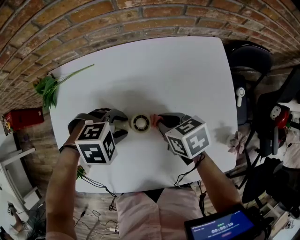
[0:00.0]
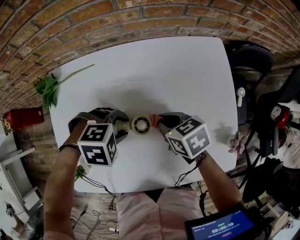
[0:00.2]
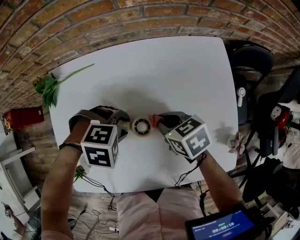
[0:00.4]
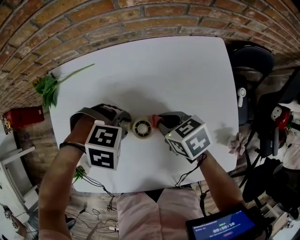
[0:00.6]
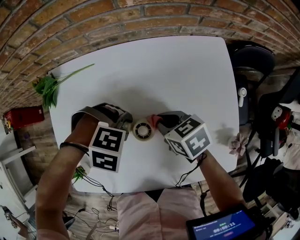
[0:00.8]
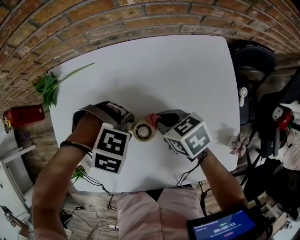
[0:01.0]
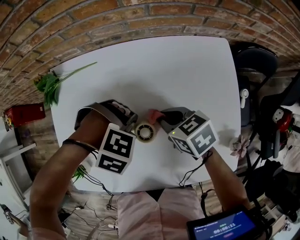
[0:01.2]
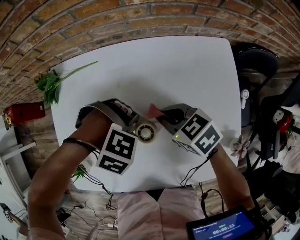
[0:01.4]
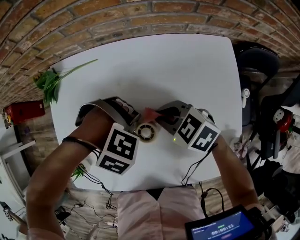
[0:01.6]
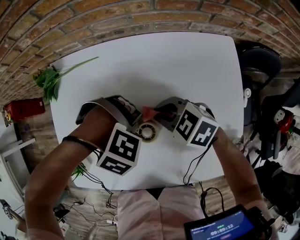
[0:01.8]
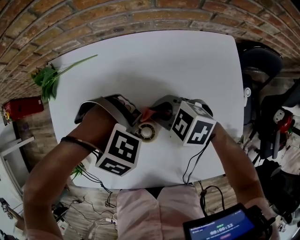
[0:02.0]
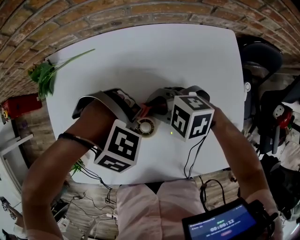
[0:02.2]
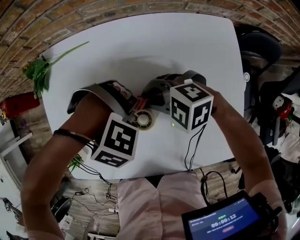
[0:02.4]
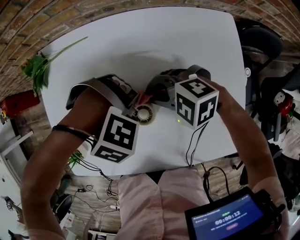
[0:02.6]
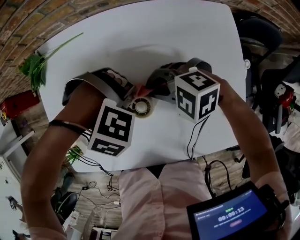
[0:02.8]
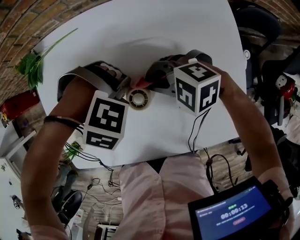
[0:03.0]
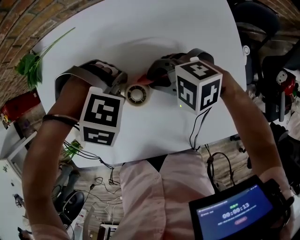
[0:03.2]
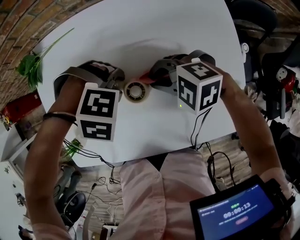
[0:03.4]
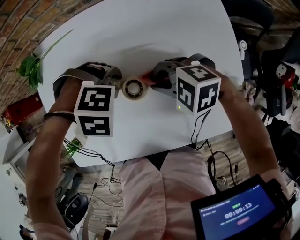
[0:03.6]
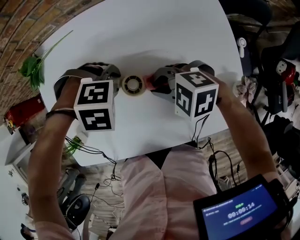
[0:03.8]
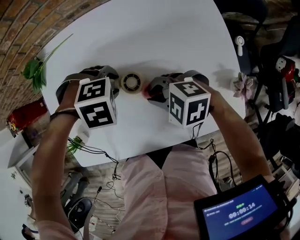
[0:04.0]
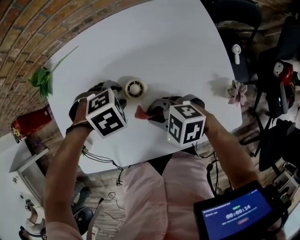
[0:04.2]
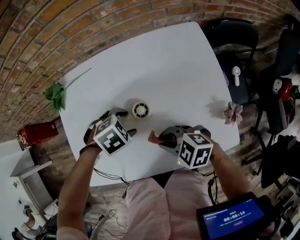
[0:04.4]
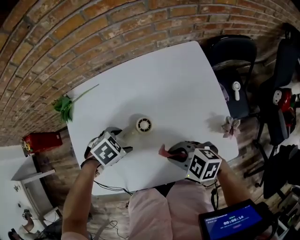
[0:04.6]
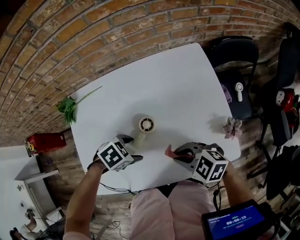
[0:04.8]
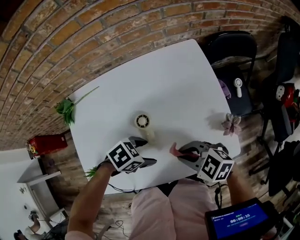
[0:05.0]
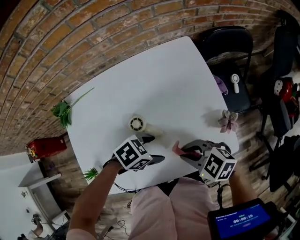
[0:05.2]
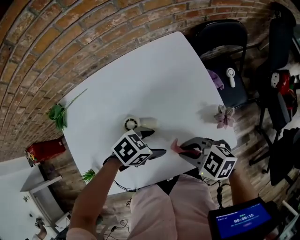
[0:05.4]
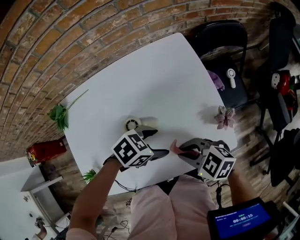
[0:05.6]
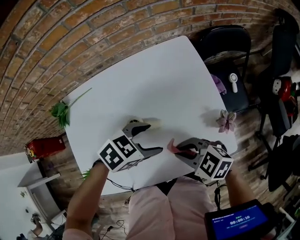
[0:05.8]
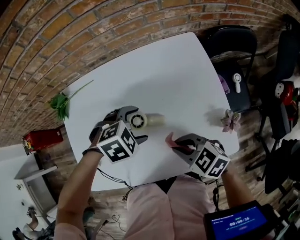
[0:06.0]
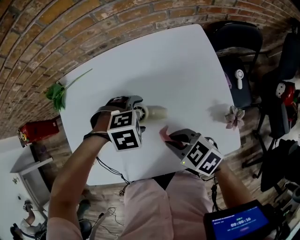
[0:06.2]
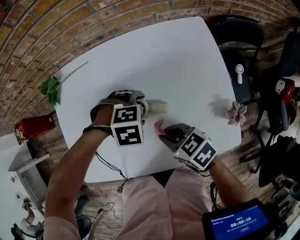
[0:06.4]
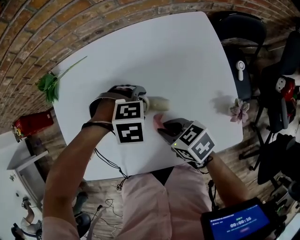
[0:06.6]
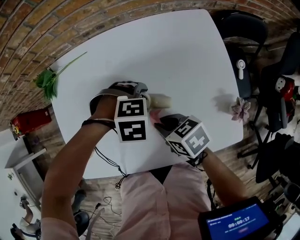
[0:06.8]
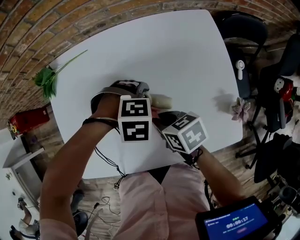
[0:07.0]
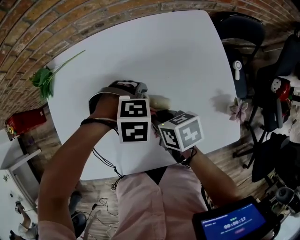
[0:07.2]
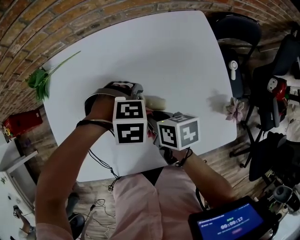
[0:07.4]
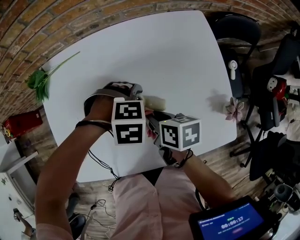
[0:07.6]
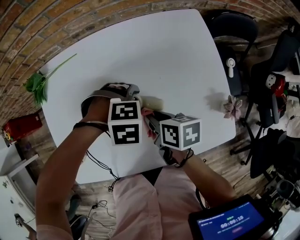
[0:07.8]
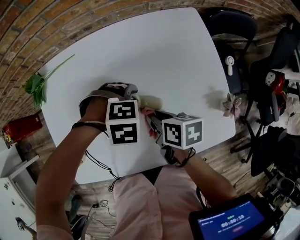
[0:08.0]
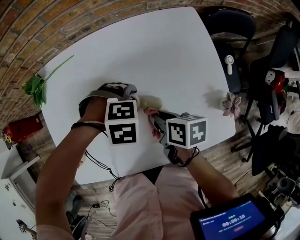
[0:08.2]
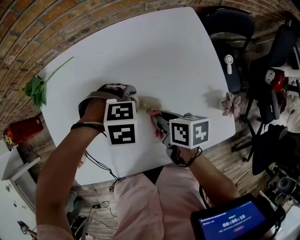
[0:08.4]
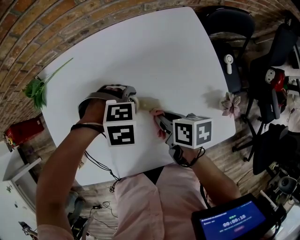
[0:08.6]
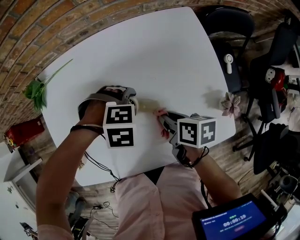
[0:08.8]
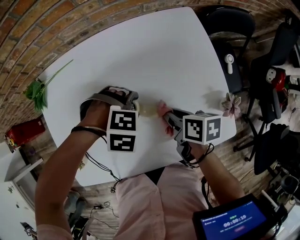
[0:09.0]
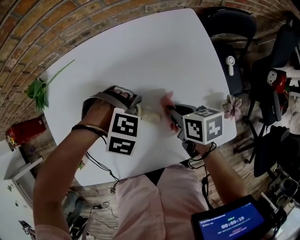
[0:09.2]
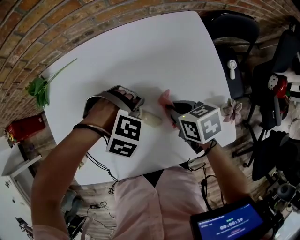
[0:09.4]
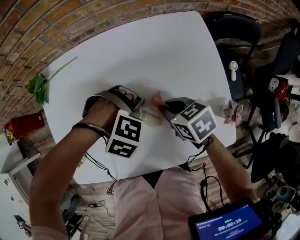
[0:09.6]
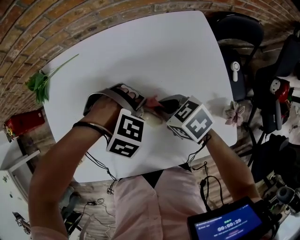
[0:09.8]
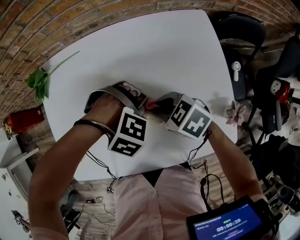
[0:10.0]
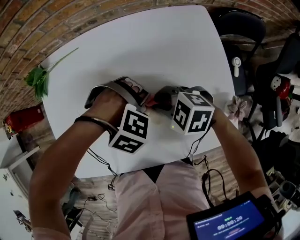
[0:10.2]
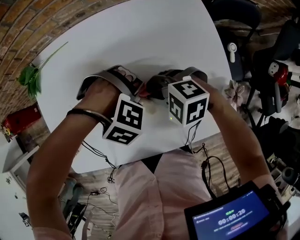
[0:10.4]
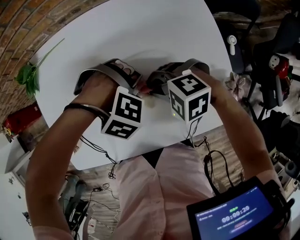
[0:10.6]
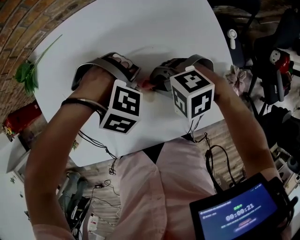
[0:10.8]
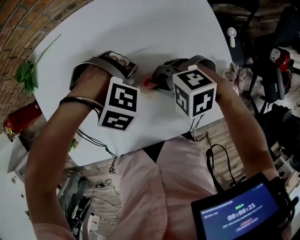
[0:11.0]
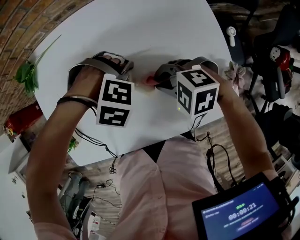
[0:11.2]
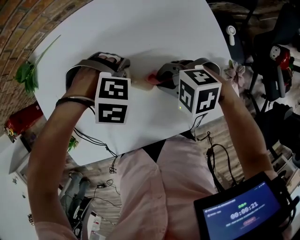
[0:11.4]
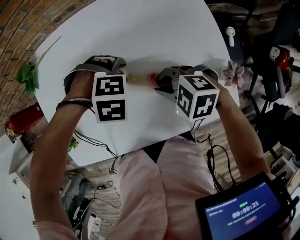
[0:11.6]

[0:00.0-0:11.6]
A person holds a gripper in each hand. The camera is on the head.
0:00.0 to 0:01.4: The left gripper changes its angle by approximately 30 degrees. Meanwhile the right gripper turns by approximately 20 degrees.
0:01.4 to 0:02.8: The right gripper rotates around the line of its fingers by about 50 degrees, counterclockwise from behind.
0:02.8 to 0:04.4: The left gripper rotates around the line of its fingers by roughly 60 degrees, counterclockwise from behind. Meanwhile the right gripper shifts by some 15 cm, and swivels about 30 degrees.
0:04.4 to 0:05.8: The right gripper changes place by about 10 cm. The left gripper shifts by some 15 cm, and changes its angle by about 30 degrees.
0:05.8 to 0:07.2: The right gripper moves roughly 15 cm, and rotates around the line of its fingers by about 50 degrees, clockwise from behind; the left gripper heads downward, covering roughly 10 cm, and turns by approximately 50 degrees.
0:07.2 to 0:08.8: The right gripper changes place by roughly 10 cm, and rotates some 20 degrees.
0:08.8 to 0:10.2: The left gripper swivels about 30 degrees. The right gripper moves roughly 5 cm, and rotates around the line of its fingers by roughly 80 degrees, counterclockwise from behind.
0:10.2 to 0:11.6: The right gripper moves some 5 cm, while the left gripper rotates approximately 20 degrees.

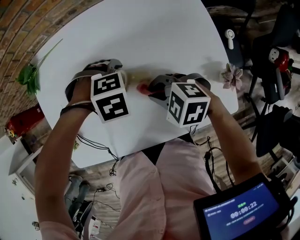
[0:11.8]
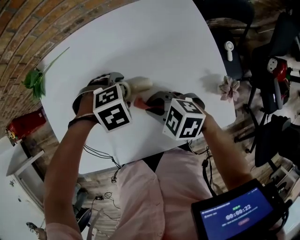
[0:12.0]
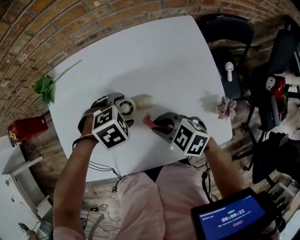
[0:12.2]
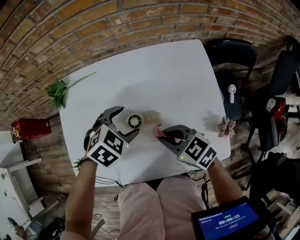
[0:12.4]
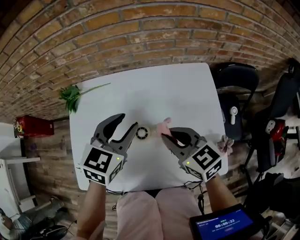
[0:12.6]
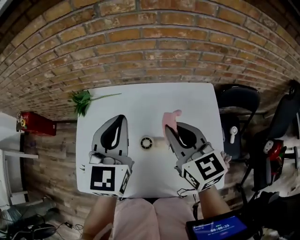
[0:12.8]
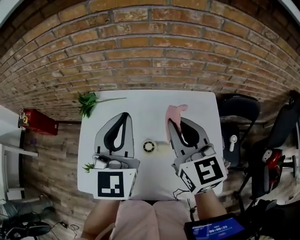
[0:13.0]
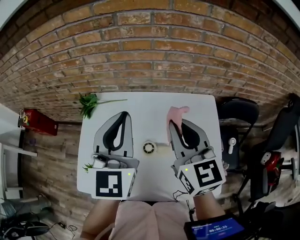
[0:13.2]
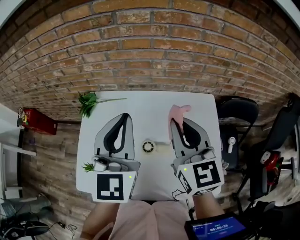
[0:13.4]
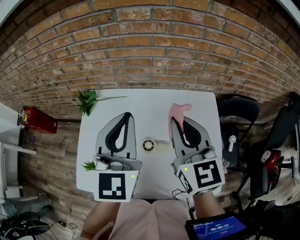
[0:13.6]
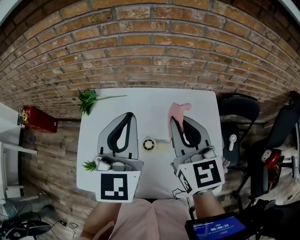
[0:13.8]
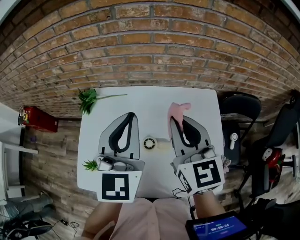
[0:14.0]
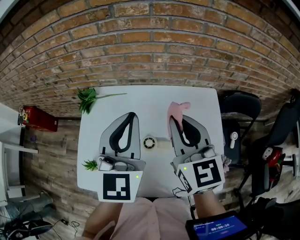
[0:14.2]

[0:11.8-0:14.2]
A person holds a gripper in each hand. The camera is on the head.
0:11.8 to 0:13.0: The two grippers go about 35 cm upward. The right gripper tips its fingers upward by approximately 40 degrees. The left gripper angles its fingers upward, by approximately 80 degrees, and closes up.
0:13.0 to 0:14.2: The grippers make only small movements.

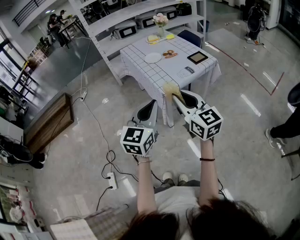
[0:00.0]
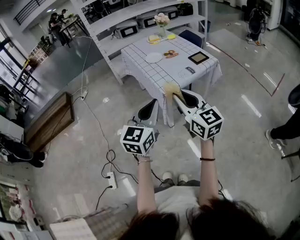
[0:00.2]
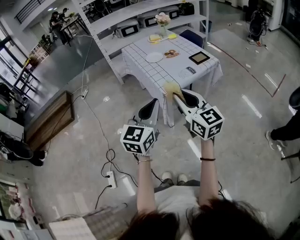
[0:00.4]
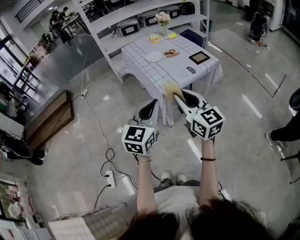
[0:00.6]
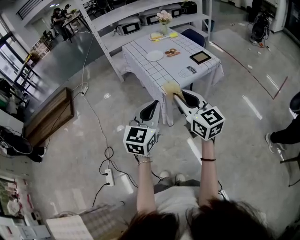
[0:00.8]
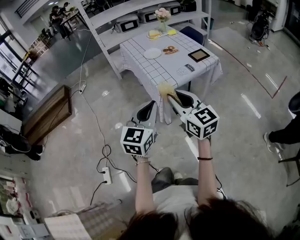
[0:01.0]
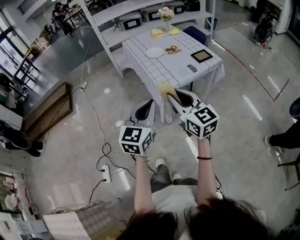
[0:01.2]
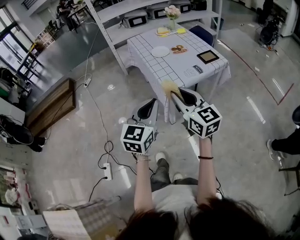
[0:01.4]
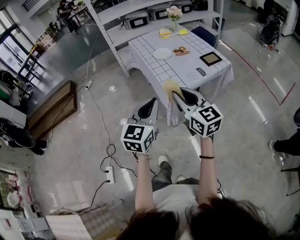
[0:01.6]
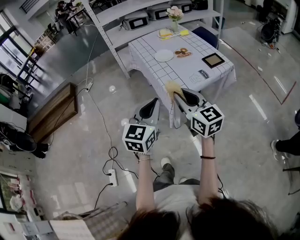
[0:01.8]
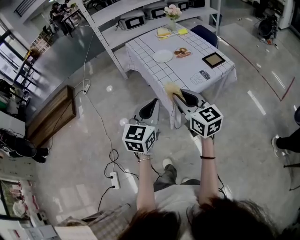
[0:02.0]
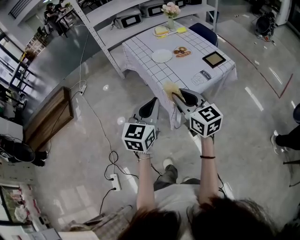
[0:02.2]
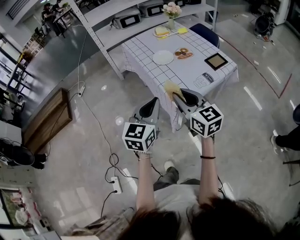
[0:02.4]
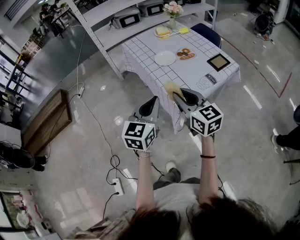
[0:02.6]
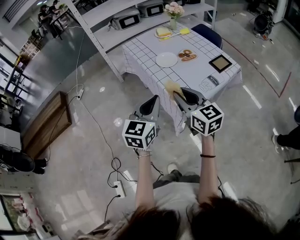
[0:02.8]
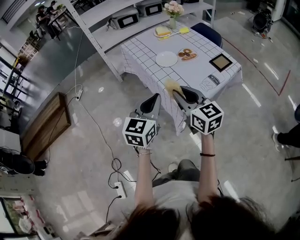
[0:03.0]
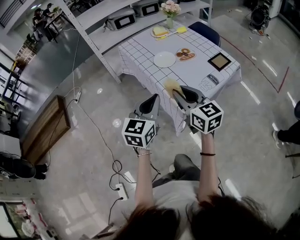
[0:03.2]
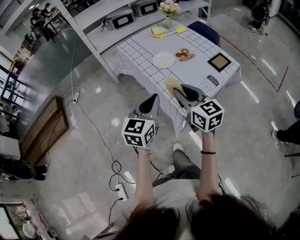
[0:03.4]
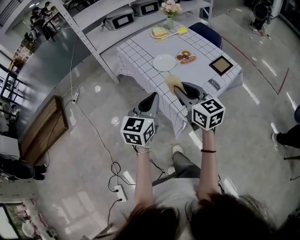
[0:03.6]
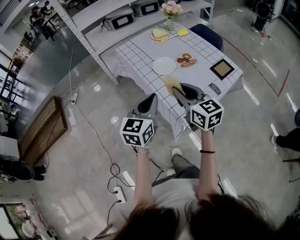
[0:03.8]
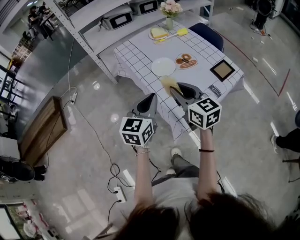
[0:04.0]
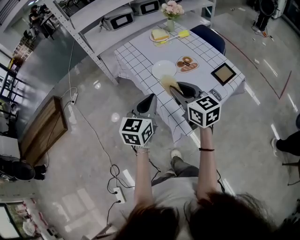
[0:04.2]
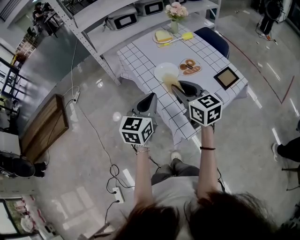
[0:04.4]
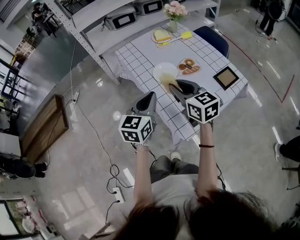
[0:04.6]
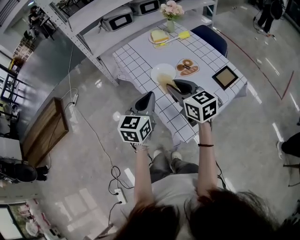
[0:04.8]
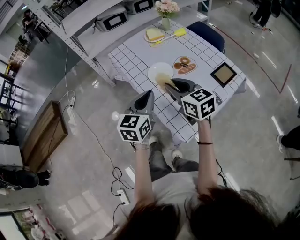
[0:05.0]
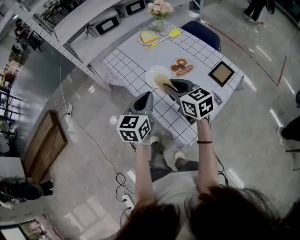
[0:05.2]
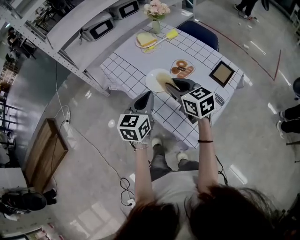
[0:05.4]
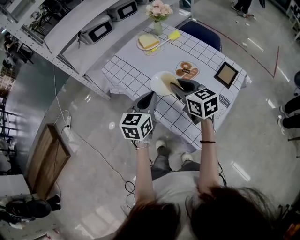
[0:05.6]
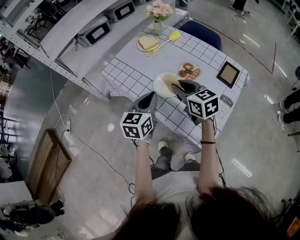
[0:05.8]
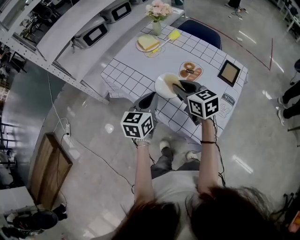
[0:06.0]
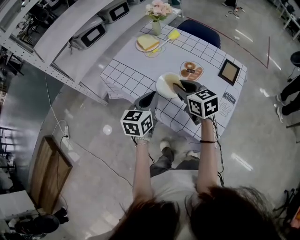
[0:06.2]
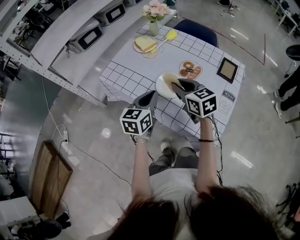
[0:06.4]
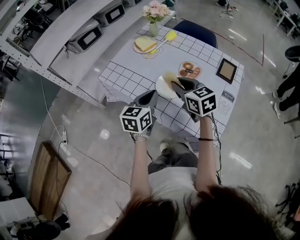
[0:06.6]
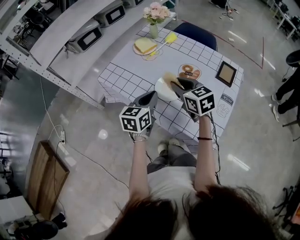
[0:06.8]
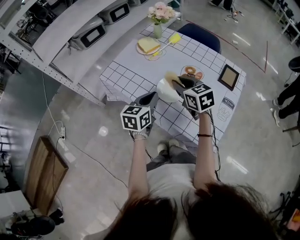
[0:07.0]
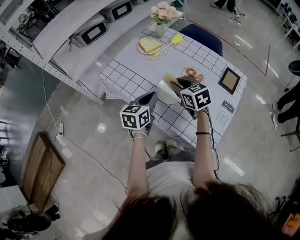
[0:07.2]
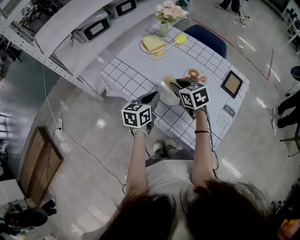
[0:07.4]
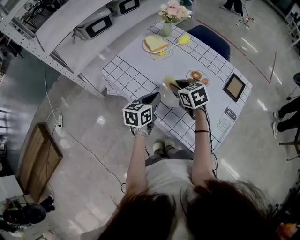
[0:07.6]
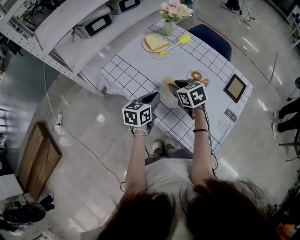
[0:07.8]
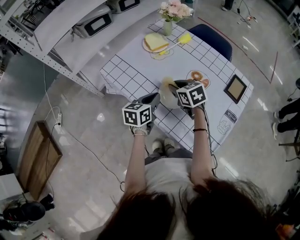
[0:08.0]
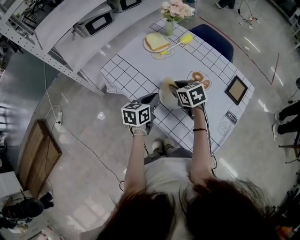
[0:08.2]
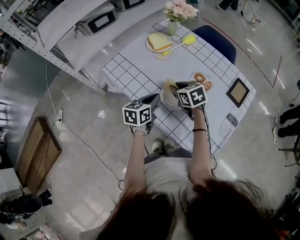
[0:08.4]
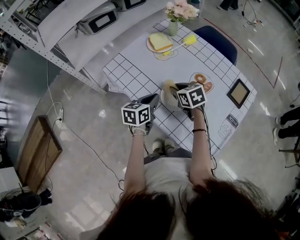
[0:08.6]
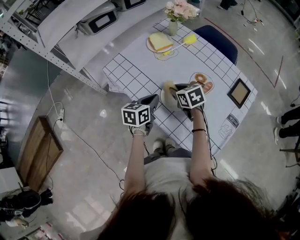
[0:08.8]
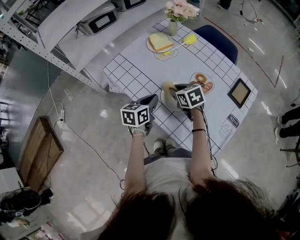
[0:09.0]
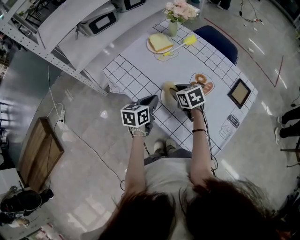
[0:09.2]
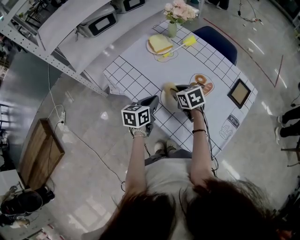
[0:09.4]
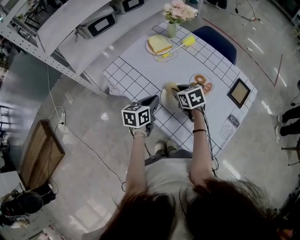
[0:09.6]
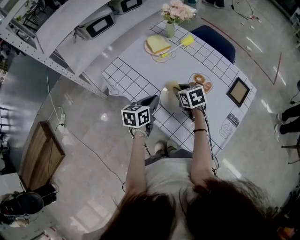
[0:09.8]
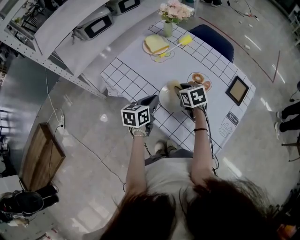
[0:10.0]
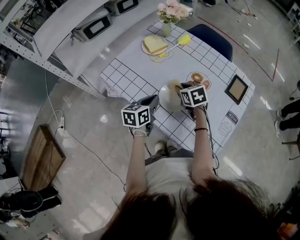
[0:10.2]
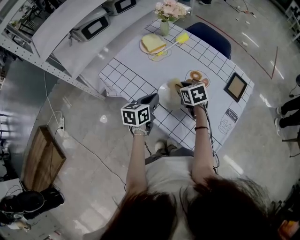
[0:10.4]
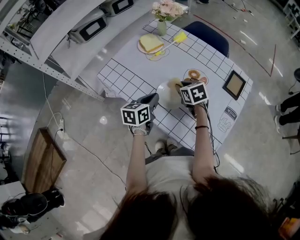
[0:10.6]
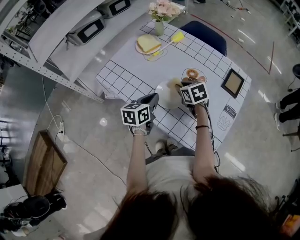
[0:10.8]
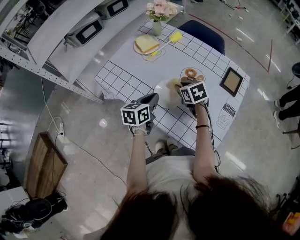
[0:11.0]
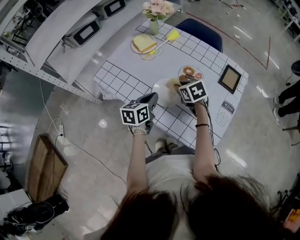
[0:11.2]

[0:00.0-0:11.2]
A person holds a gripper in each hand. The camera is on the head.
0:00.0 to 0:01.6: The two grippers go some 10 cm forward.
0:01.6 to 0:03.2: The grippers both shift forward by roughly 20 cm.
0:03.2 to 0:04.8: The two grippers go some 20 cm forward.
0:04.8 to 0:06.4: The left gripper moves approximately 20 cm, and turns by approximately 30 degrees; the right gripper changes place by roughly 15 cm, and rotates approximately 30 degrees.
0:06.4 to 0:08.0: The grippers both shift downward and forward by roughly 10 cm. The right gripper changes its angle by roughly 20 degrees.
0:08.0 to 0:09.6: The grippers stay close to where they were, moving slightly.
0:09.6 to 0:11.2: The right gripper is displaced to the right by some 5 cm.
